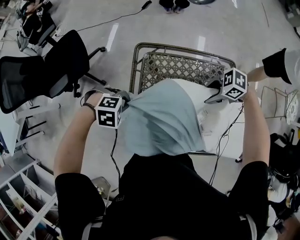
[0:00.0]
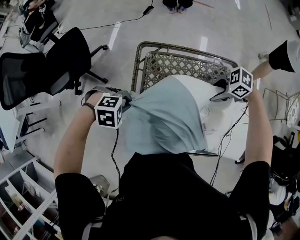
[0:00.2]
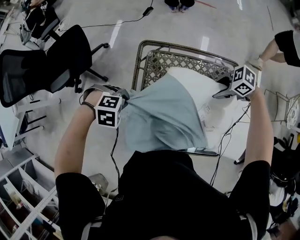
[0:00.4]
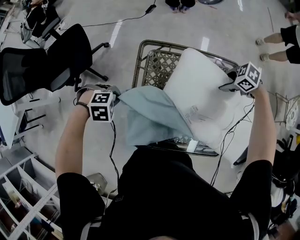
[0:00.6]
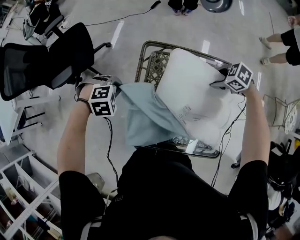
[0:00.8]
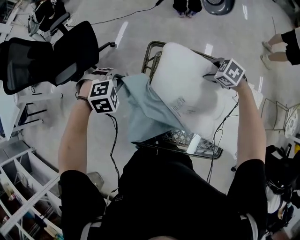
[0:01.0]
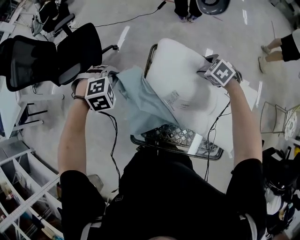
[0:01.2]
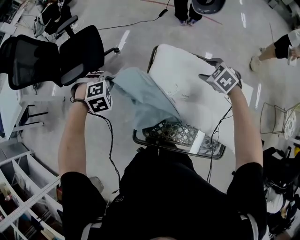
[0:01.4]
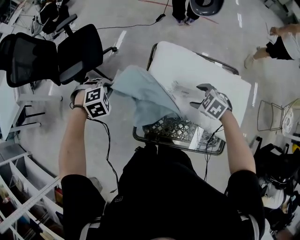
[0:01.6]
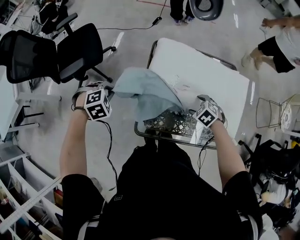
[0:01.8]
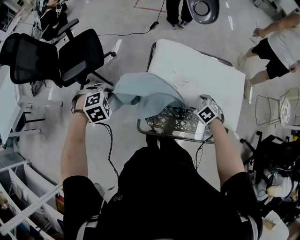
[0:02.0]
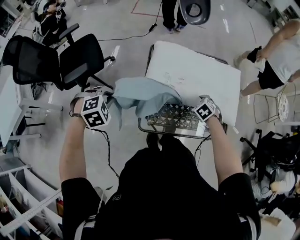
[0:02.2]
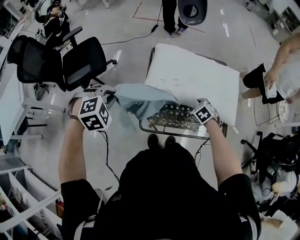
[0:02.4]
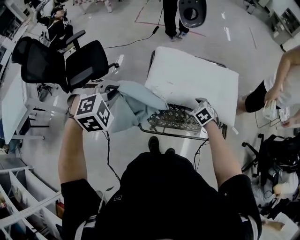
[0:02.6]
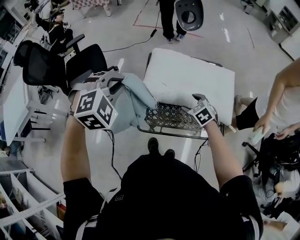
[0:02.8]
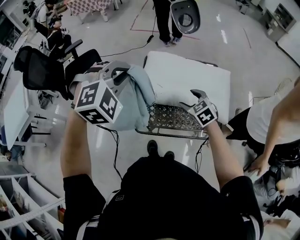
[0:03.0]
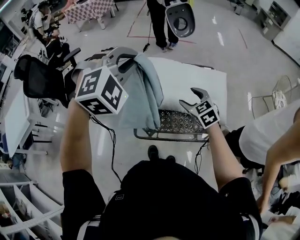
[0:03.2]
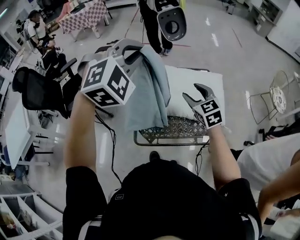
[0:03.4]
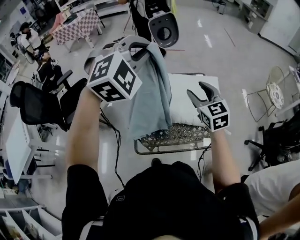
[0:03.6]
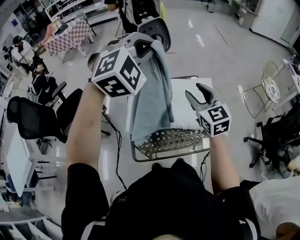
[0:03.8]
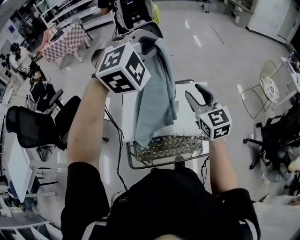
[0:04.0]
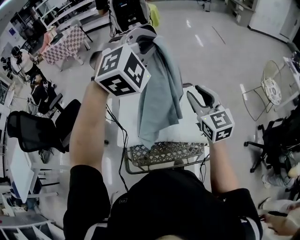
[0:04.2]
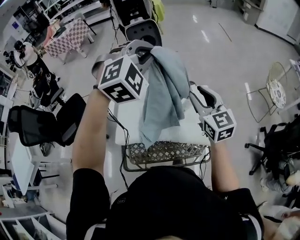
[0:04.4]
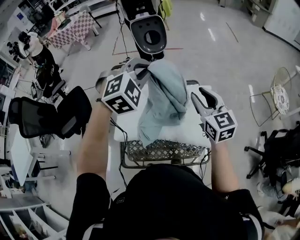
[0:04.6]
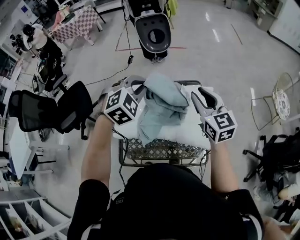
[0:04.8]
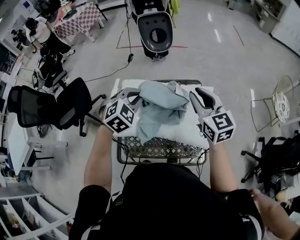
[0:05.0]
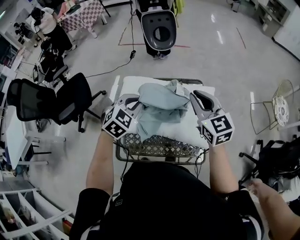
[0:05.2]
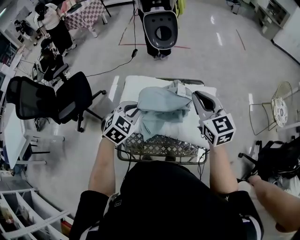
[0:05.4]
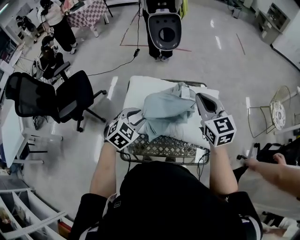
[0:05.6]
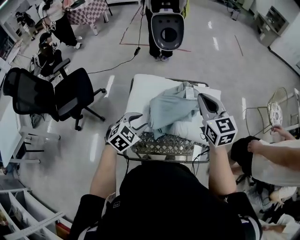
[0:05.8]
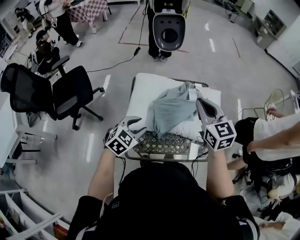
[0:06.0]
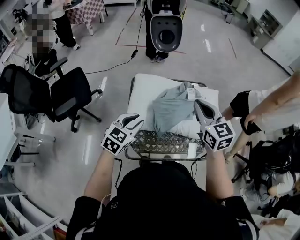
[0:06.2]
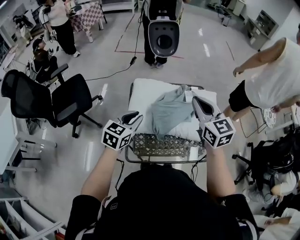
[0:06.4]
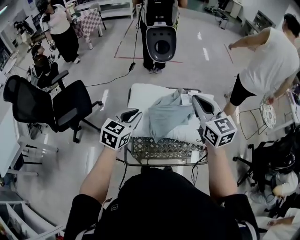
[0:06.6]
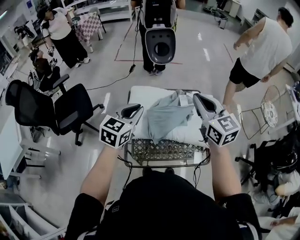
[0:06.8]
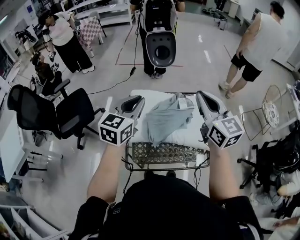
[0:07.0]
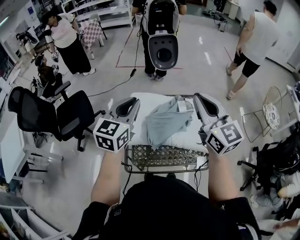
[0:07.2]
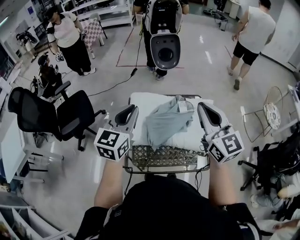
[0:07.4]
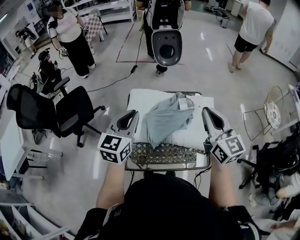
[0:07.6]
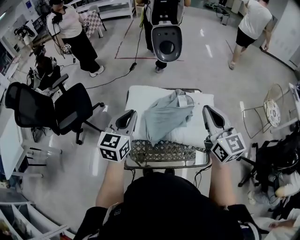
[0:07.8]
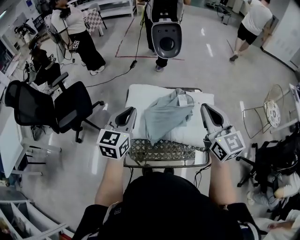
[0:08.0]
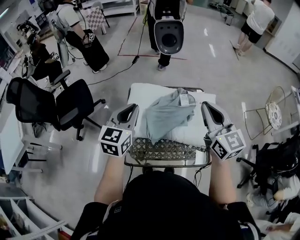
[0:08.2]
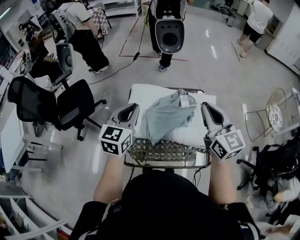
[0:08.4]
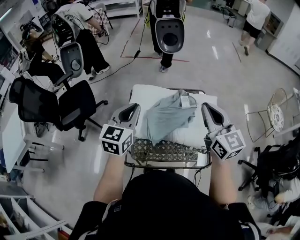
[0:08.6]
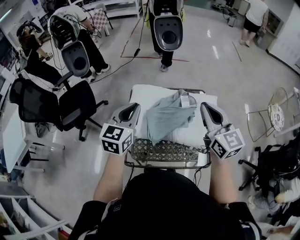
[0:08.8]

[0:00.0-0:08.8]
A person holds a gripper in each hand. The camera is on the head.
0:00.0 to 0:01.4: The right gripper moves some 15 cm, and rotates about 50 degrees. Meanwhile the left gripper changes place by approximately 15 cm, and changes its angle by approximately 30 degrees.
0:01.4 to 0:03.0: The right gripper moves approximately 30 cm, and rotates approximately 30 degrees, while the left gripper shifts roughly 30 cm upward, and tips its fingers upward by approximately 30 degrees.
0:03.0 to 0:04.4: The left gripper moves to the right and forward, about 35 cm. Meanwhile the right gripper shifts some 30 cm to the right, upward and forward, points its fingers about 40 degrees further upward, and closes.
0:04.4 to 0:05.8: The right gripper is displaced to the left by approximately 10 cm. The left gripper goes approximately 40 cm downward, to the left and backward, twists approximately 50 degrees counterclockwise, seen from behind, and opens up.
0:05.8 to 0:07.4: The left gripper heads upward, covering roughly 20 cm, tilts its fingers some 30 degrees upward, and closes its fingers. Meanwhile the right gripper is displaced upward and backward by approximately 15 cm.
0:07.4 to 0:08.8: The right gripper moves roughly 5 cm; the left gripper shifts by roughly 5 cm.

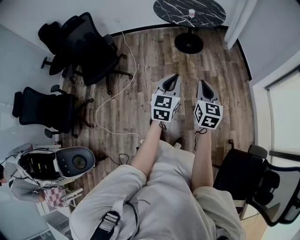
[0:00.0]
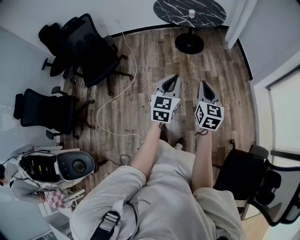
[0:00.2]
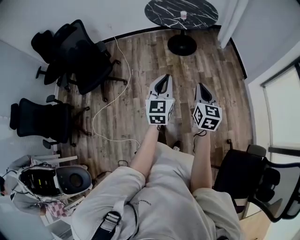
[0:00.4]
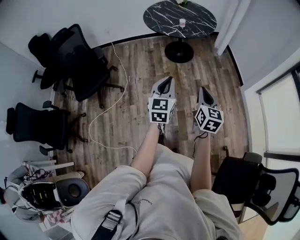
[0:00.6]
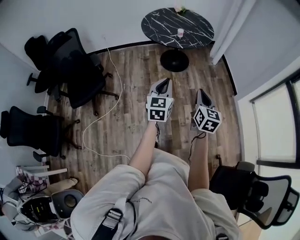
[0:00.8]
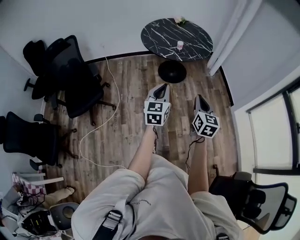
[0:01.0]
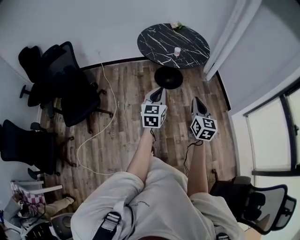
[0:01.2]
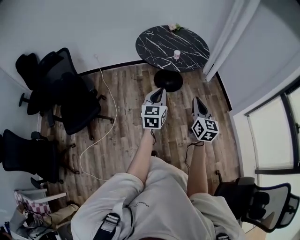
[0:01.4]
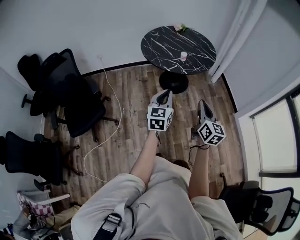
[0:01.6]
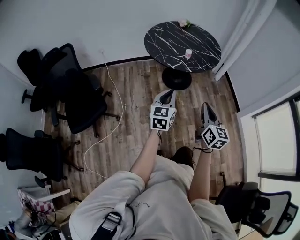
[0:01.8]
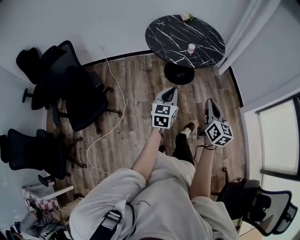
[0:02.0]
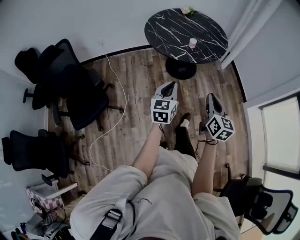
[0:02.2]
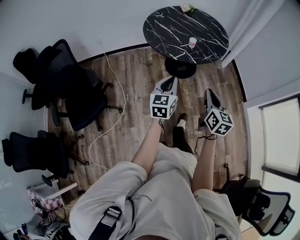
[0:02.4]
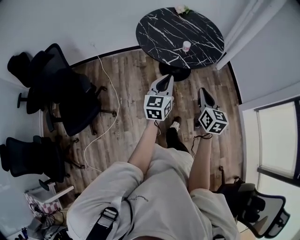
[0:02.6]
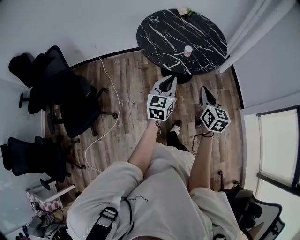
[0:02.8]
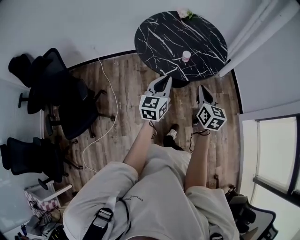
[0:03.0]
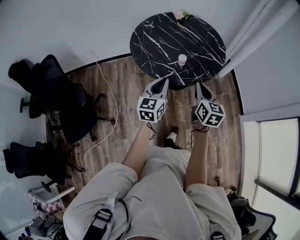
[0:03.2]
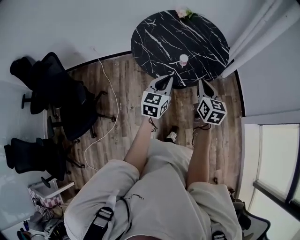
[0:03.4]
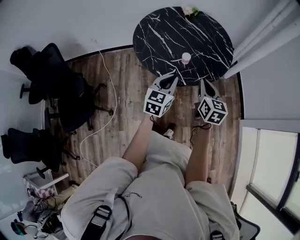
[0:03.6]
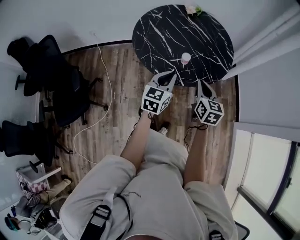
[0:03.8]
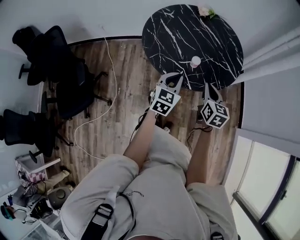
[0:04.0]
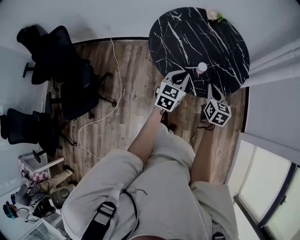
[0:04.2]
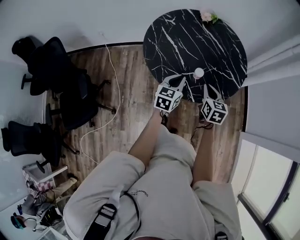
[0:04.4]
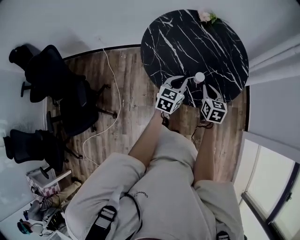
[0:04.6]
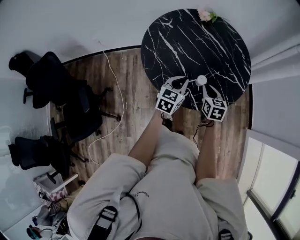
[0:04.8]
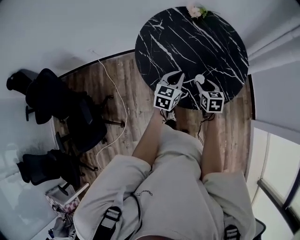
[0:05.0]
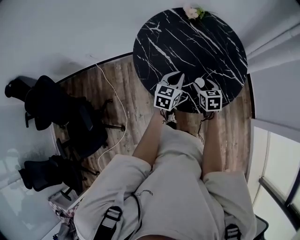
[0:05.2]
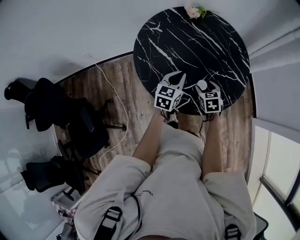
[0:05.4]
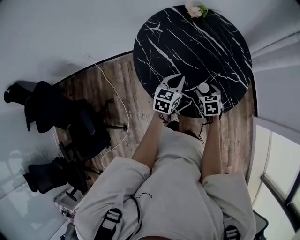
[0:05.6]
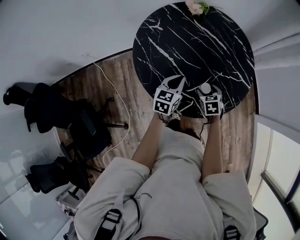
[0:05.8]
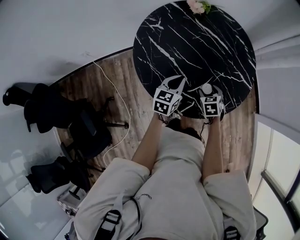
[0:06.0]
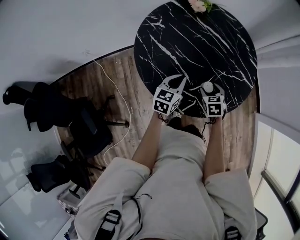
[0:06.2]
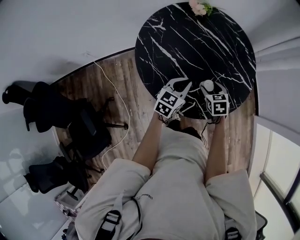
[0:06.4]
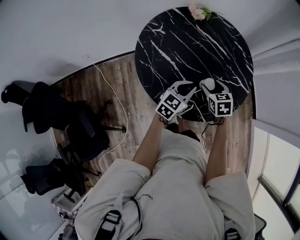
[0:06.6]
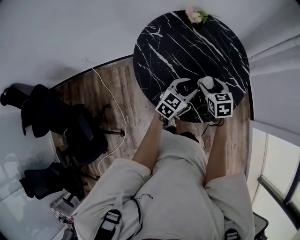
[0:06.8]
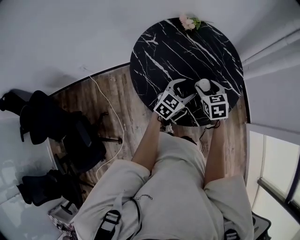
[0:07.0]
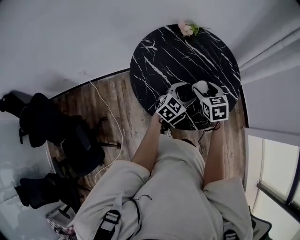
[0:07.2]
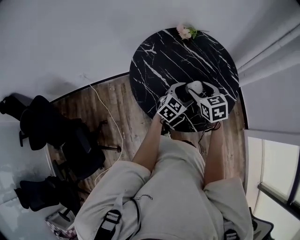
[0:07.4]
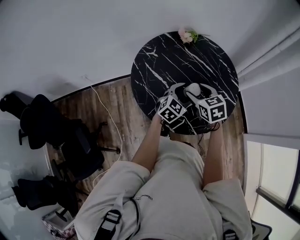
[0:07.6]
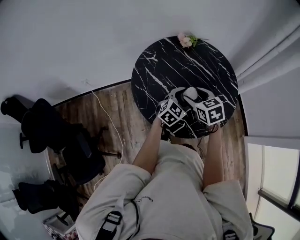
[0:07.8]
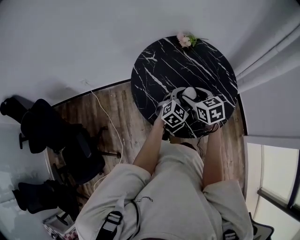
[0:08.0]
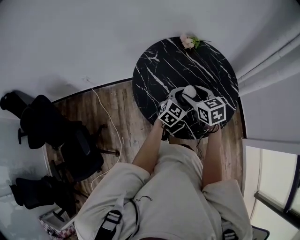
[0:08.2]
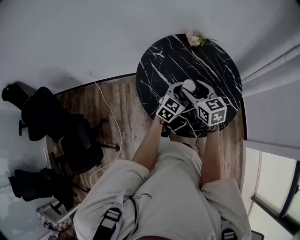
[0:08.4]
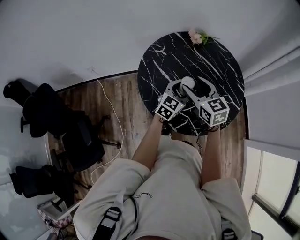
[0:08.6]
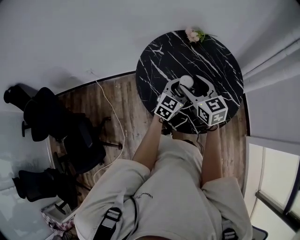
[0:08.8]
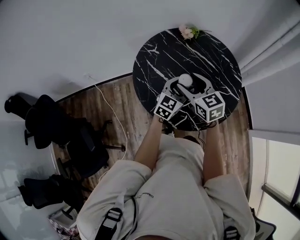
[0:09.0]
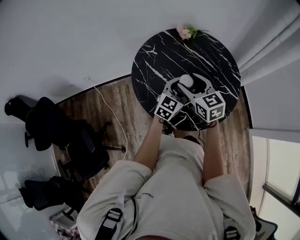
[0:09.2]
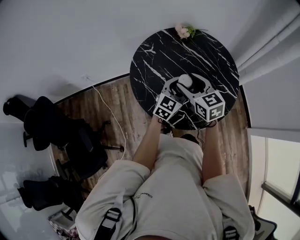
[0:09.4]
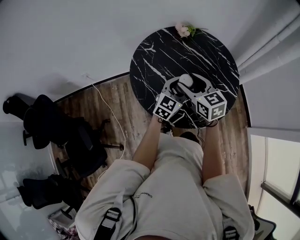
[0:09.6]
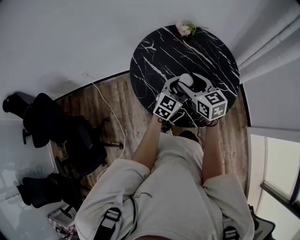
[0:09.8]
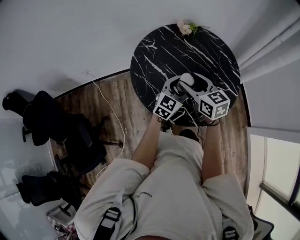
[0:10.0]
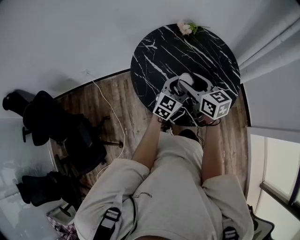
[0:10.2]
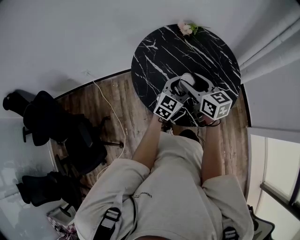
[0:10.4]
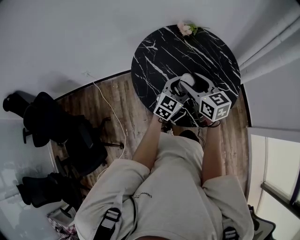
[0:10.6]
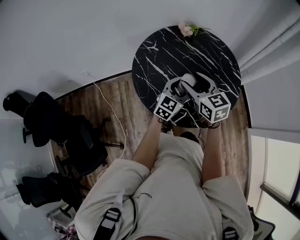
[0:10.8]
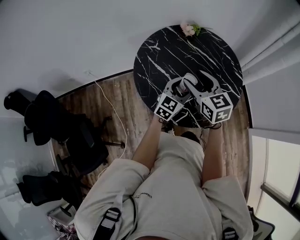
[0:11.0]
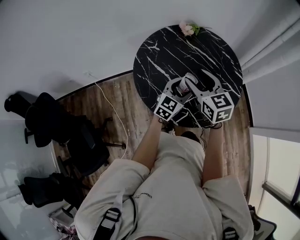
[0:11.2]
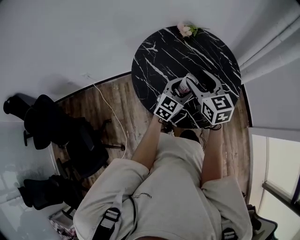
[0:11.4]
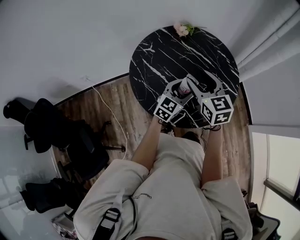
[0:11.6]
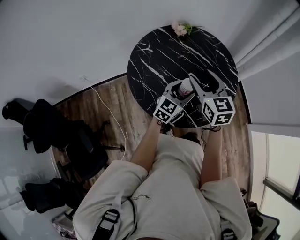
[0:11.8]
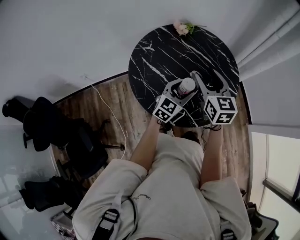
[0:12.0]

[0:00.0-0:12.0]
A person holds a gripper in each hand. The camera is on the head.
0:00.0 to 0:01.6: Both grippers move forward, about 30 cm.
0:01.6 to 0:03.0: Both grippers travel together forward, about 30 cm.
0:03.0 to 0:04.4: The grippers both shift forward and downward by about 25 cm.
0:04.4 to 0:06.0: The right gripper travels downward and forward by about 20 cm, changes its angle by some 30 degrees, and opens. Meanwhile the left gripper moves forward and downward, some 20 cm.
0:06.0 to 0:07.6: The right gripper moves upward, approximately 20 cm, and changes its angle by approximately 20 degrees, while the left gripper shifts some 10 cm to the right and upward, rotates approximately 30 degrees, and opens up.
0:07.6 to 0:09.0: The right gripper heads upward, covering about 5 cm.
0:09.0 to 0:10.4: The grippers move only a little.
0:10.4 to 0:12.0: The right gripper goes some 5 cm to the right, and rotates about 30 degrees.

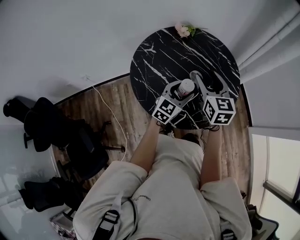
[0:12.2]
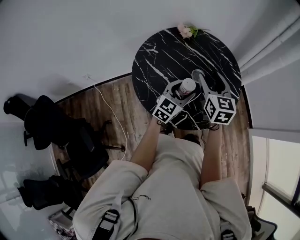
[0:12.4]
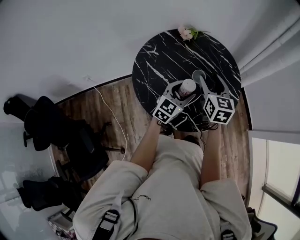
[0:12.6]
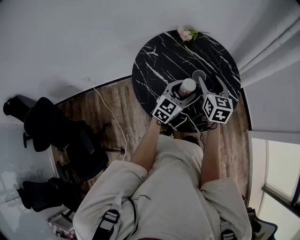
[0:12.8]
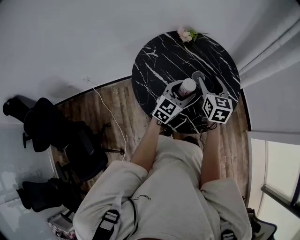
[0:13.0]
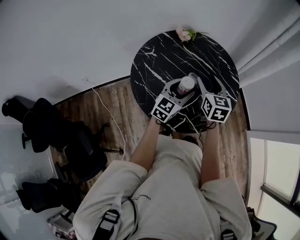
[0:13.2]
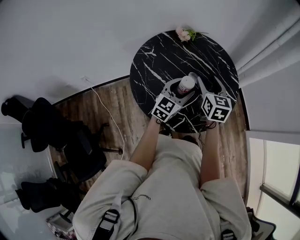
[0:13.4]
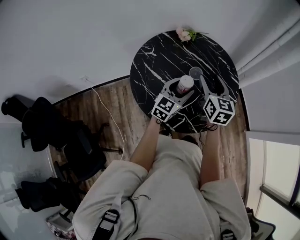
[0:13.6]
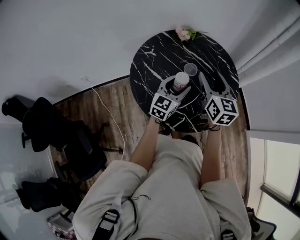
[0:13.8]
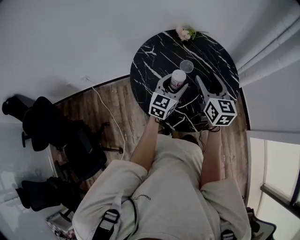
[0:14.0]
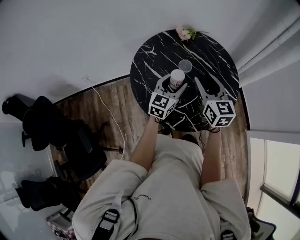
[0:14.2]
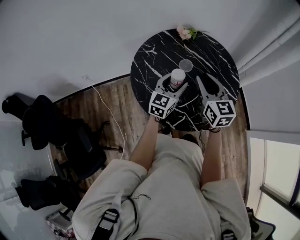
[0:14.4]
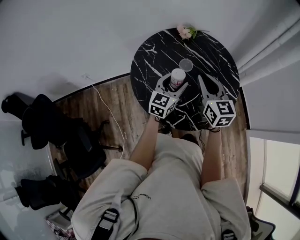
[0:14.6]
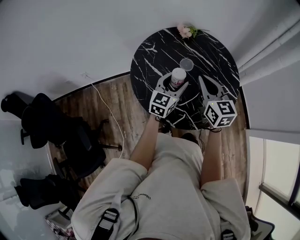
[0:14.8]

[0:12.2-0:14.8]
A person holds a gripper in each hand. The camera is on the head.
0:12.2 to 0:13.4: The grippers stay close to where they were, moving slightly.
0:13.4 to 0:14.8: The right gripper moves roughly 5 cm, and closes up.
